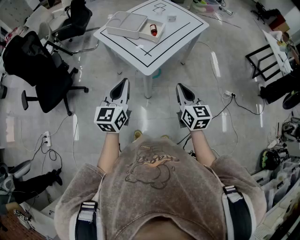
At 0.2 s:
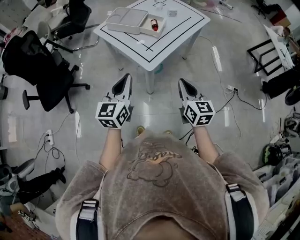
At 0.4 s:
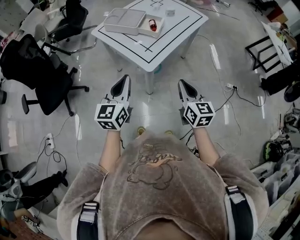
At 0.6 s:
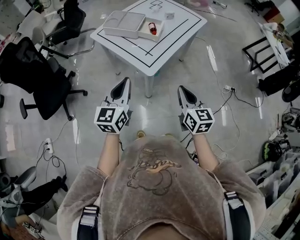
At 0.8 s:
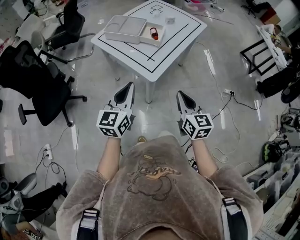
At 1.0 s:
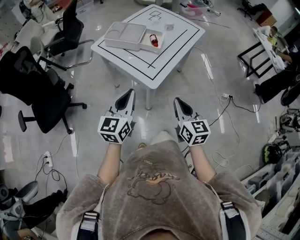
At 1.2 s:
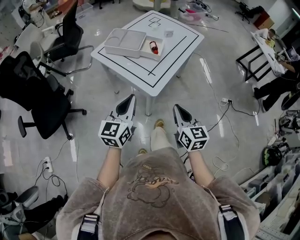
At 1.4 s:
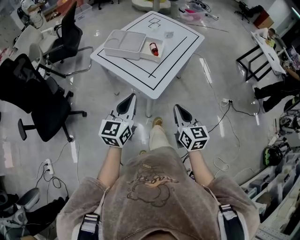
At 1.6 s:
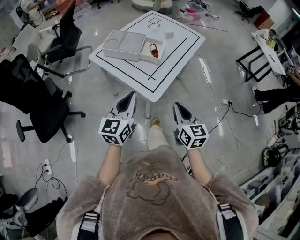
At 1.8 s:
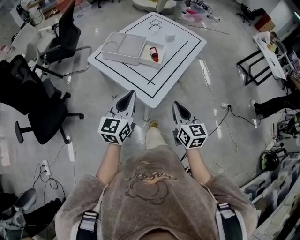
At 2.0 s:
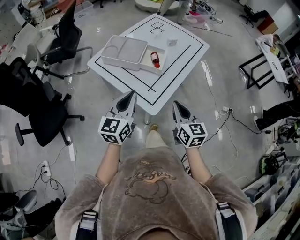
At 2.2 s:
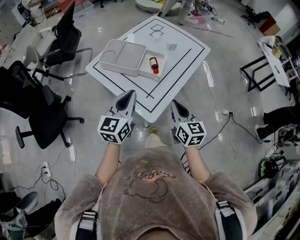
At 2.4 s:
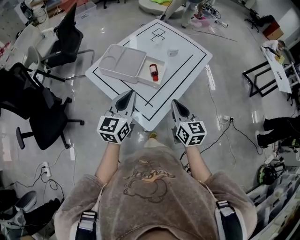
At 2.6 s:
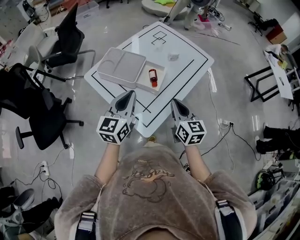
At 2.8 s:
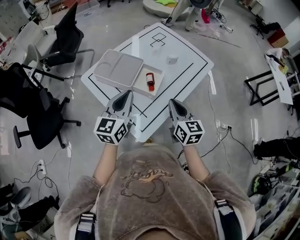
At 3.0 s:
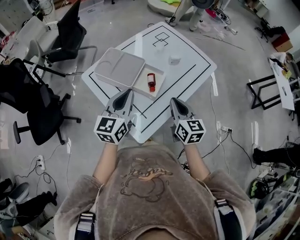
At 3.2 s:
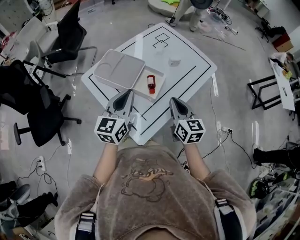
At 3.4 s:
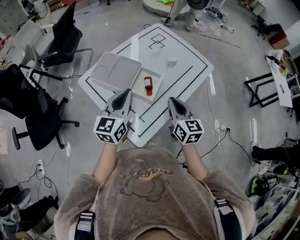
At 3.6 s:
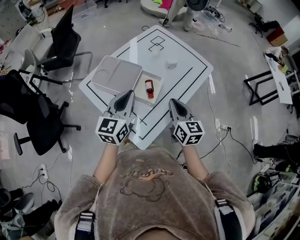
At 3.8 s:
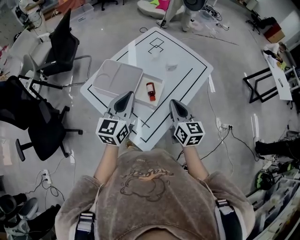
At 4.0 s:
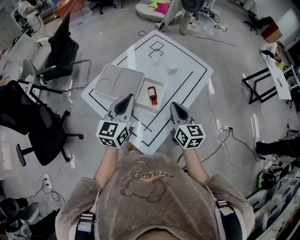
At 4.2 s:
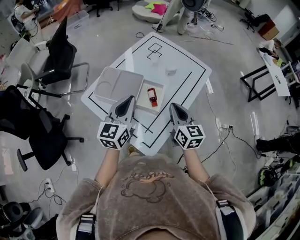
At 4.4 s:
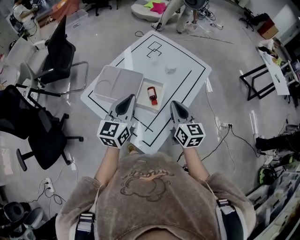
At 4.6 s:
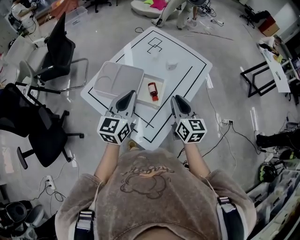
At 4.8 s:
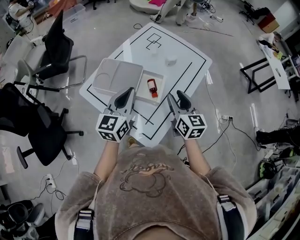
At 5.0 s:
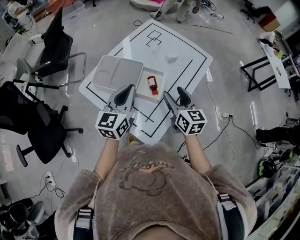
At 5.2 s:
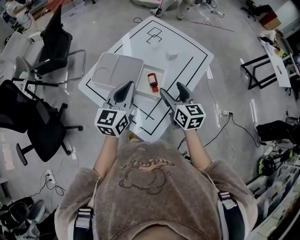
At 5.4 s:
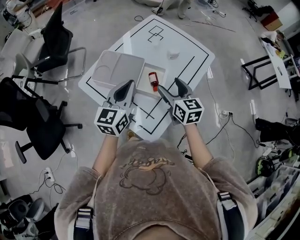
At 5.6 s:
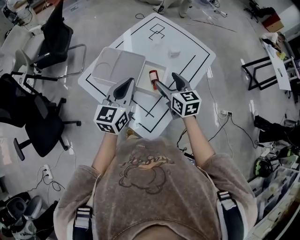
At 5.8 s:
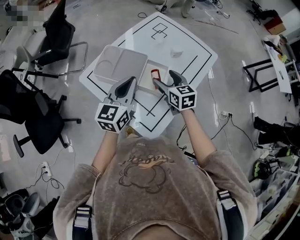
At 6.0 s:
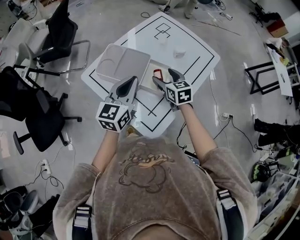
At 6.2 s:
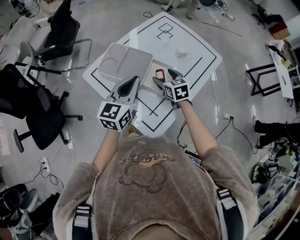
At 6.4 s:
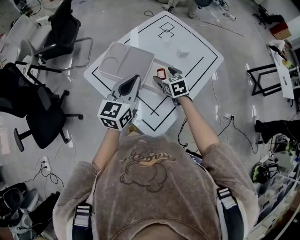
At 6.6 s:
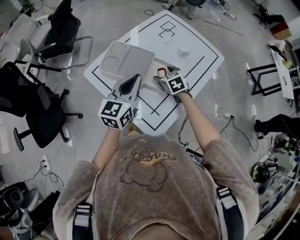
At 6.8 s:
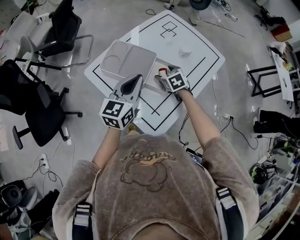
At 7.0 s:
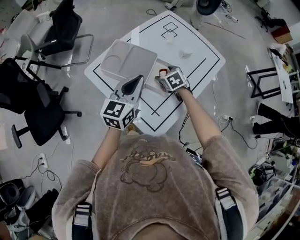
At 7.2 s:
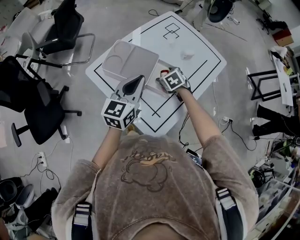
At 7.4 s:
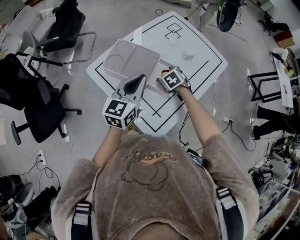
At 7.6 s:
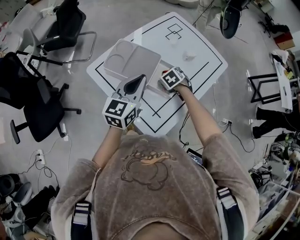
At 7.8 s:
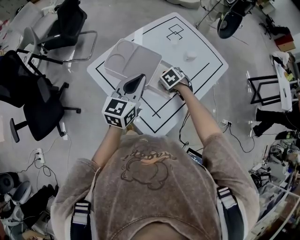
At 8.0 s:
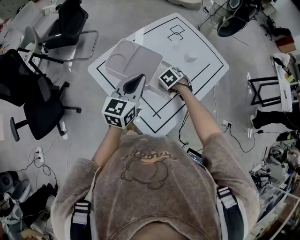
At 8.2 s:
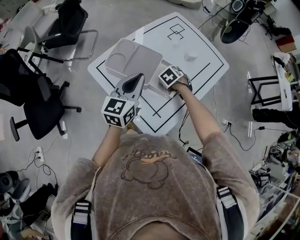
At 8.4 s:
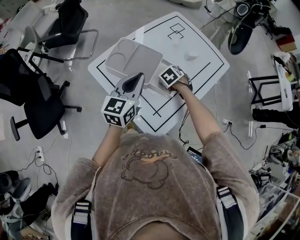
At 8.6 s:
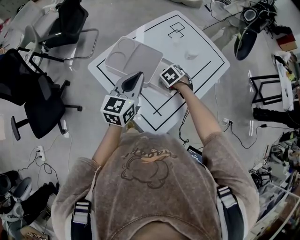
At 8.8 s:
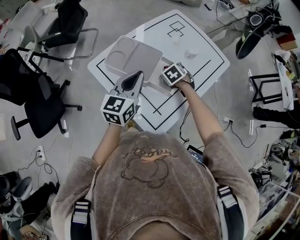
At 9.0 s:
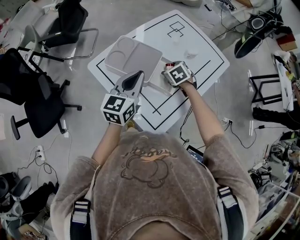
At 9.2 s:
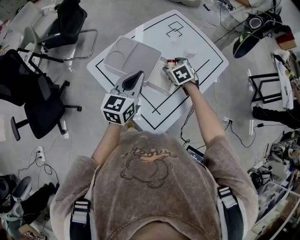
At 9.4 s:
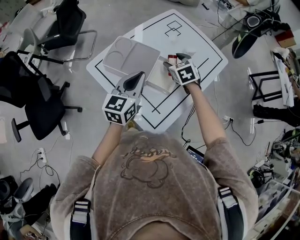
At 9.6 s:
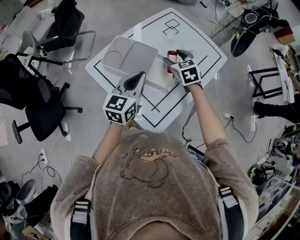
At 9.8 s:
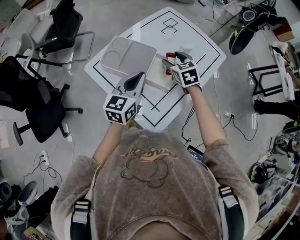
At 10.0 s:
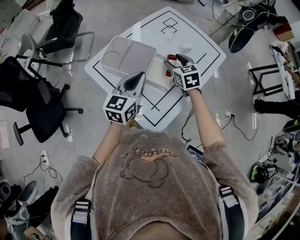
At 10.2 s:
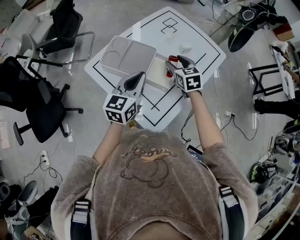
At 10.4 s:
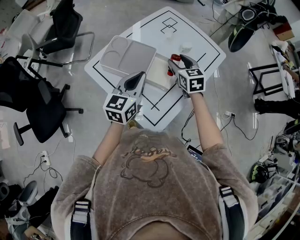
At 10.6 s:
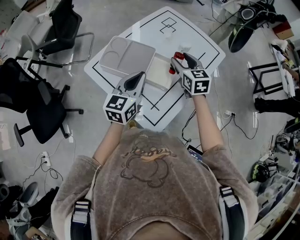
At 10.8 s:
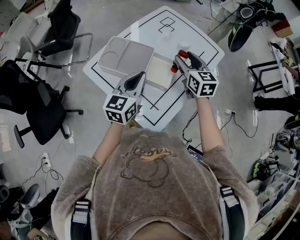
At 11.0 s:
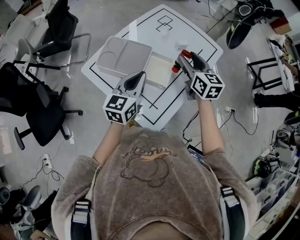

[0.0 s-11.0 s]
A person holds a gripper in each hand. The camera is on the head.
0.0 to 1.6 s: The left gripper is displaced forward by some 10 cm; the right gripper is displaced forward and to the left by some 10 cm.
1.6 to 3.2 s: Both grippers move forward, approximately 25 cm.
3.2 to 4.8 s: The right gripper opens its fingers. The left gripper ends up approximately 5 cm from where it was.
4.8 to 6.2 s: The right gripper travels downward, forward and to the left by about 15 cm, rotates about 30 degrees, and opens up.
6.2 to 7.8 s: The right gripper travels downward by approximately 10 cm, and angles its fingers downward, by roughly 30 degrees.
7.8 to 9.4 s: The right gripper goes roughly 10 cm upward, and swivels about 30 degrees.
9.4 to 11.0 s: The right gripper goes roughly 15 cm upward and to the right, and turns by roughly 40 degrees.

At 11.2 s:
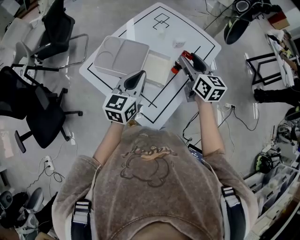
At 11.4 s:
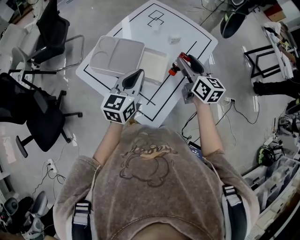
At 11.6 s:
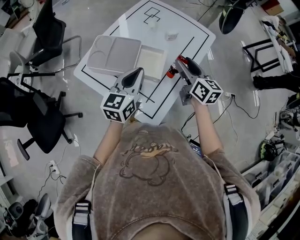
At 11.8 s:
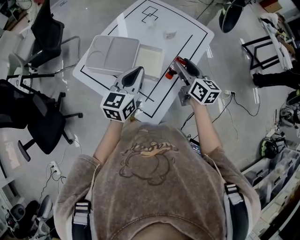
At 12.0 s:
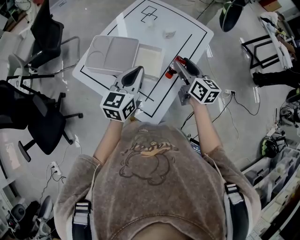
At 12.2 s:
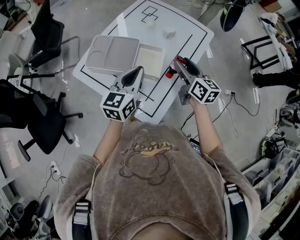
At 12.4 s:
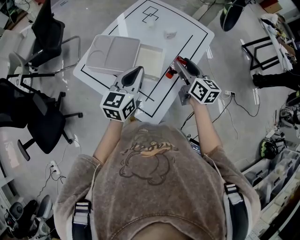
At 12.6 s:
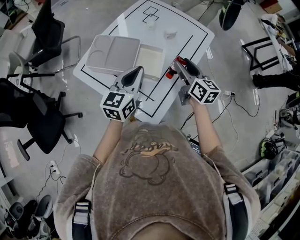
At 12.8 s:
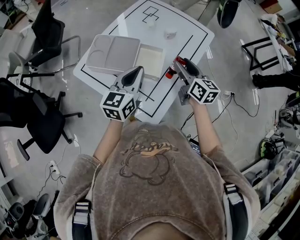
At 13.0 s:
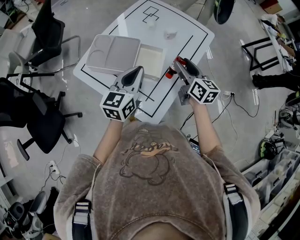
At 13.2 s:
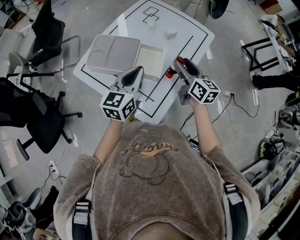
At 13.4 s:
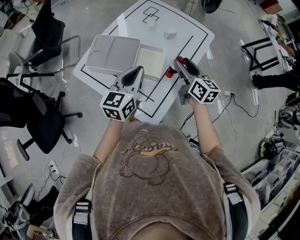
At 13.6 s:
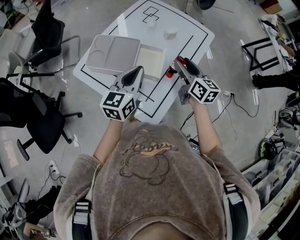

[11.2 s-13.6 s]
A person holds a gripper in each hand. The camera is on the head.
11.2 to 12.4 s: The right gripper moves roughly 5 cm.
12.4 to 13.6 s: Both grippers stay put.

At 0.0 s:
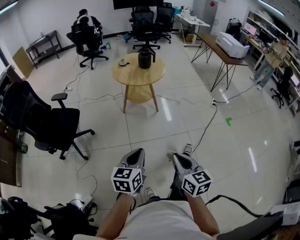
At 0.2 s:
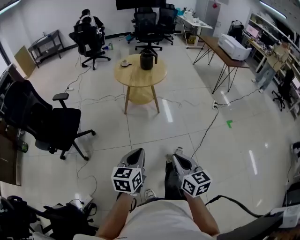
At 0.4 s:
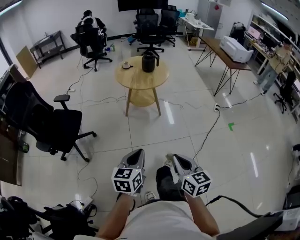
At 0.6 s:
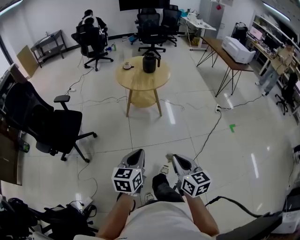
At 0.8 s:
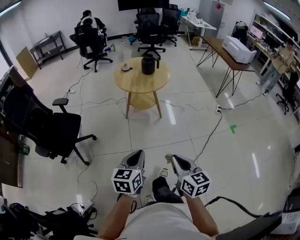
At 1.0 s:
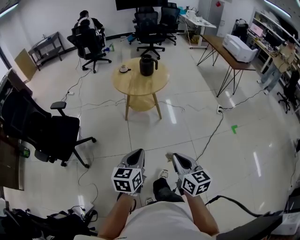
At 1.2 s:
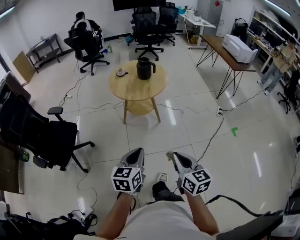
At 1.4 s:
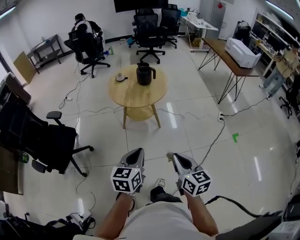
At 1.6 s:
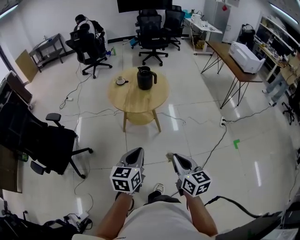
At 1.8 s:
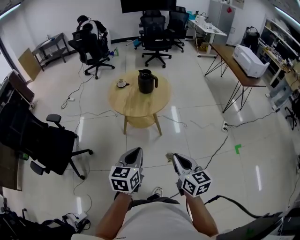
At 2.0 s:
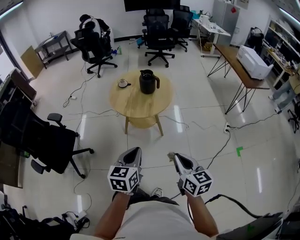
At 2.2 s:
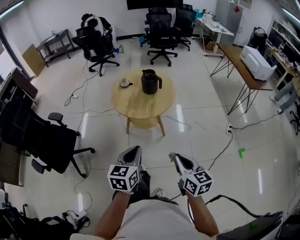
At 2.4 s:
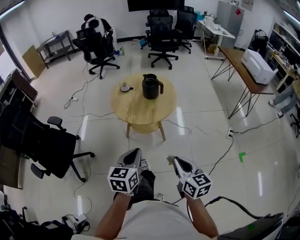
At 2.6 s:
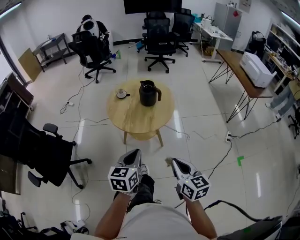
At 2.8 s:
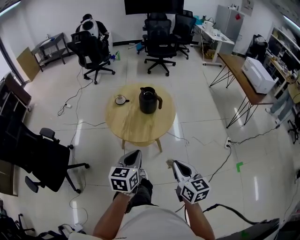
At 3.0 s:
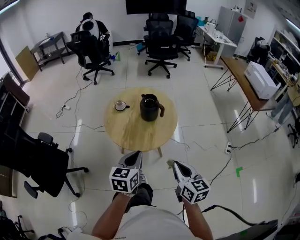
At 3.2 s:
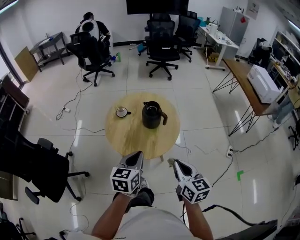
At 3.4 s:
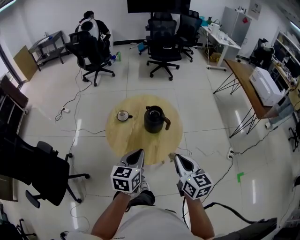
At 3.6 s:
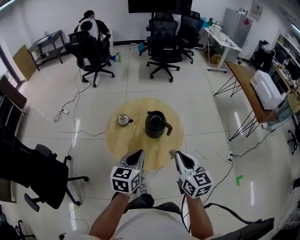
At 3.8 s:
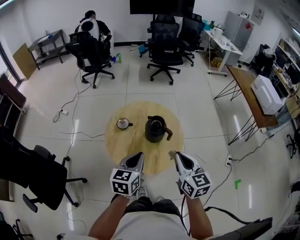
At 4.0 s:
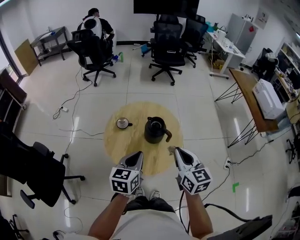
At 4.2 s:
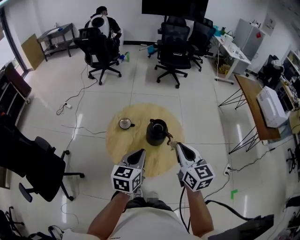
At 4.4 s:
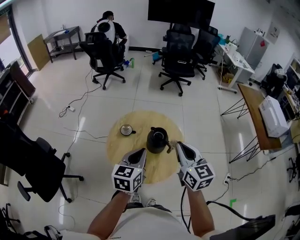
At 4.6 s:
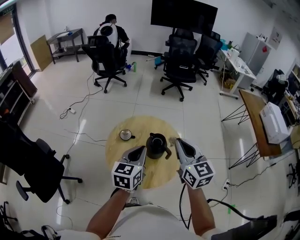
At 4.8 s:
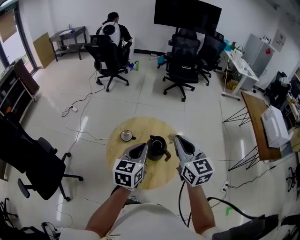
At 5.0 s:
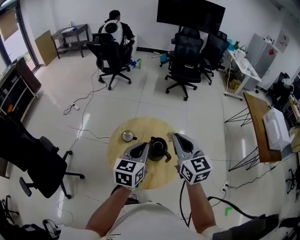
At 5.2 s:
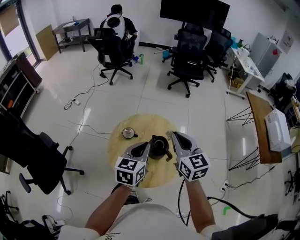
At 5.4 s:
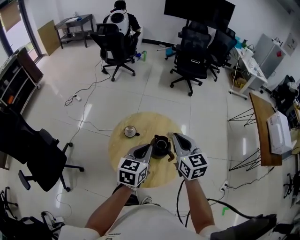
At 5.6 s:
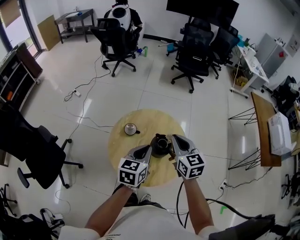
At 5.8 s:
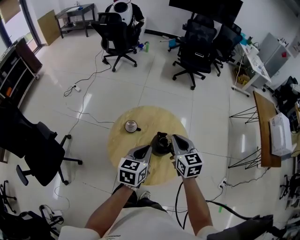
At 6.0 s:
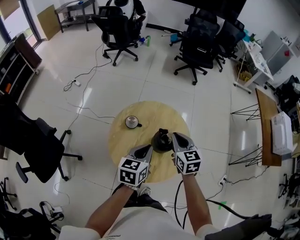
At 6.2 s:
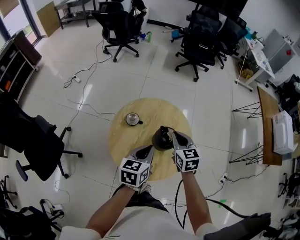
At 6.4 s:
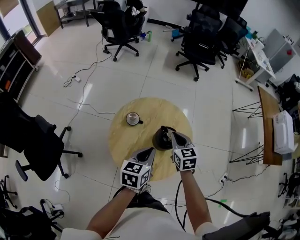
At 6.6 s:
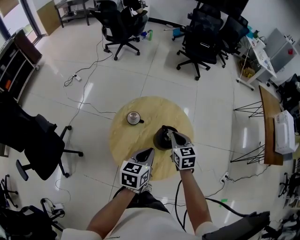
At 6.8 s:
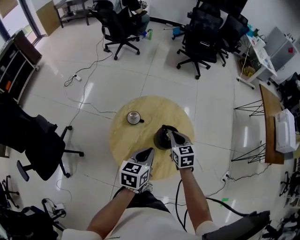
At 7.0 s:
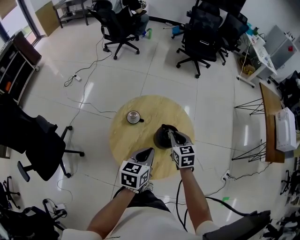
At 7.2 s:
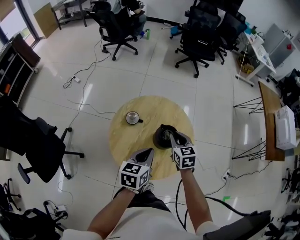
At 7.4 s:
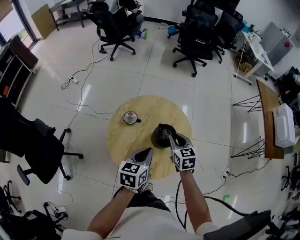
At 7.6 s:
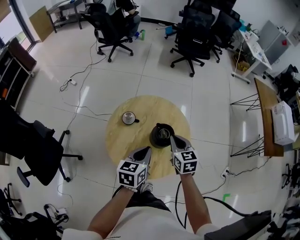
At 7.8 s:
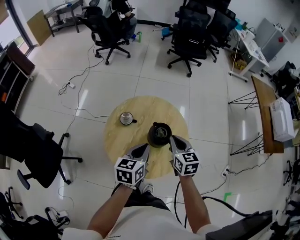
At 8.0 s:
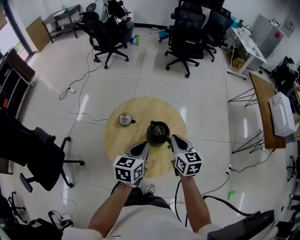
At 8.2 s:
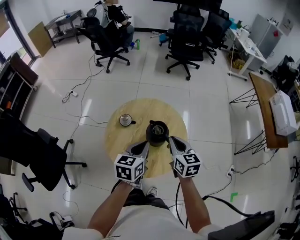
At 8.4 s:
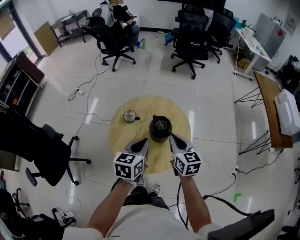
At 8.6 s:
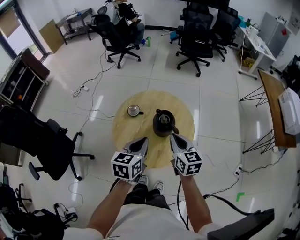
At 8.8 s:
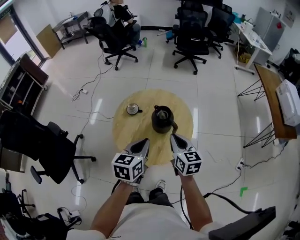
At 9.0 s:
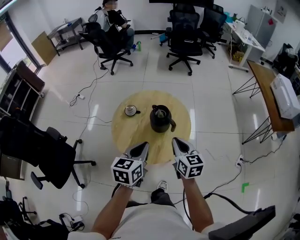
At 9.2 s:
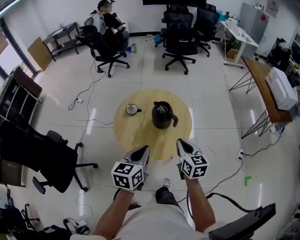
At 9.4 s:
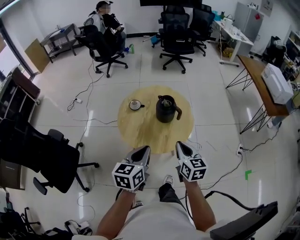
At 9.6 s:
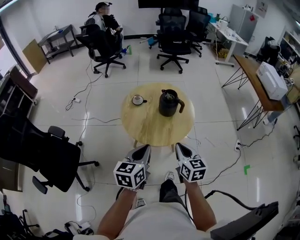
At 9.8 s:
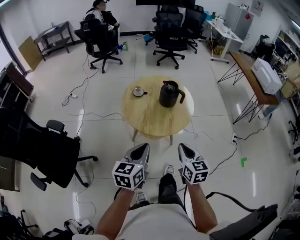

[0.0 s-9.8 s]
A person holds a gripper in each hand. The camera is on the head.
0.0 to 1.4 s: The two grippers go some 25 cm forward.
1.4 to 2.8 s: The two grippers go roughly 25 cm forward.
2.8 to 4.2 s: Both grippers move forward, some 30 cm.
4.2 to 5.6 s: The grippers both shift forward by approximately 15 cm.
5.6 to 7.0 s: The left gripper moves downward, about 5 cm. The right gripper is displaced downward by some 15 cm.
7.0 to 8.4 s: The right gripper goes roughly 10 cm backward and upward, while the left gripper ends up approximately 5 cm from where it was.
8.4 to 9.8 s: The left gripper travels backward and to the left by some 30 cm, while the right gripper goes about 30 cm backward.
